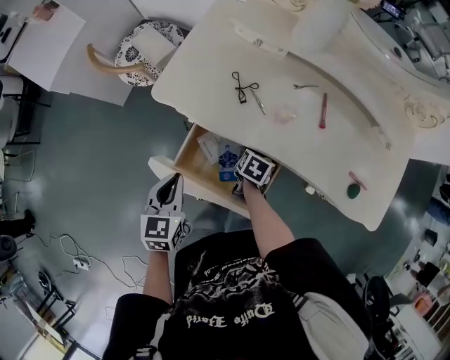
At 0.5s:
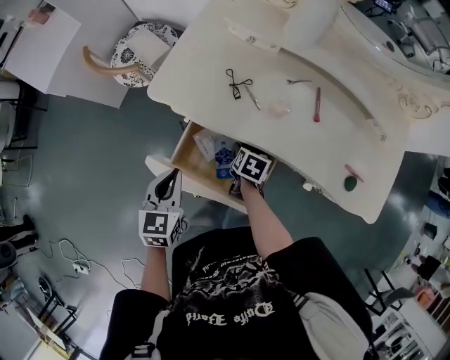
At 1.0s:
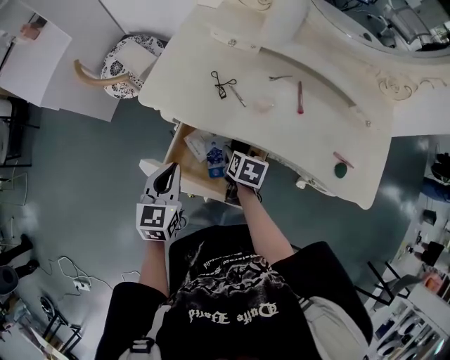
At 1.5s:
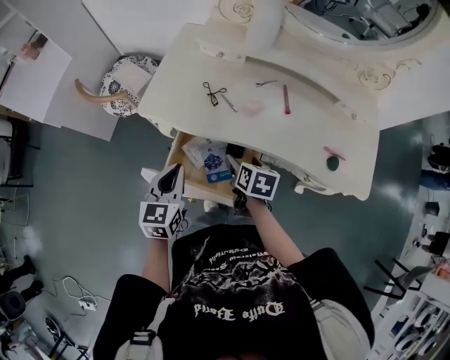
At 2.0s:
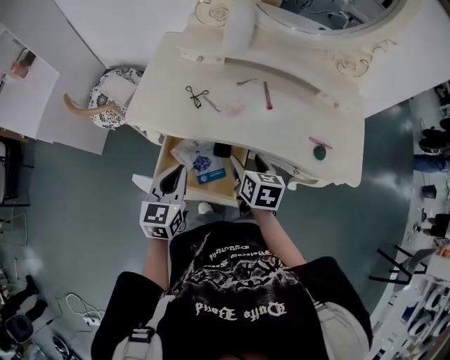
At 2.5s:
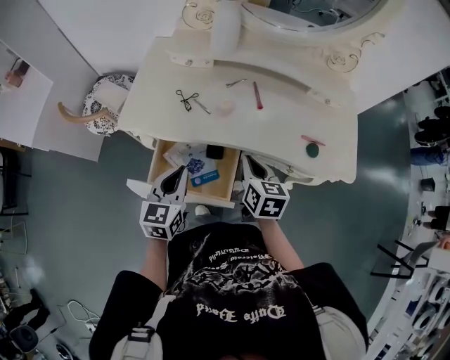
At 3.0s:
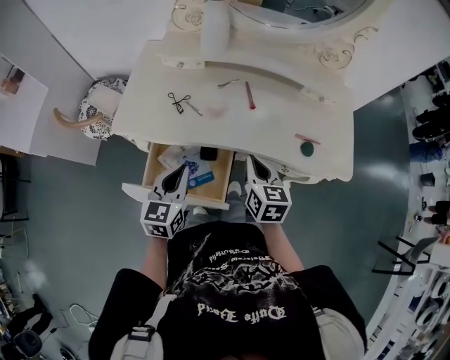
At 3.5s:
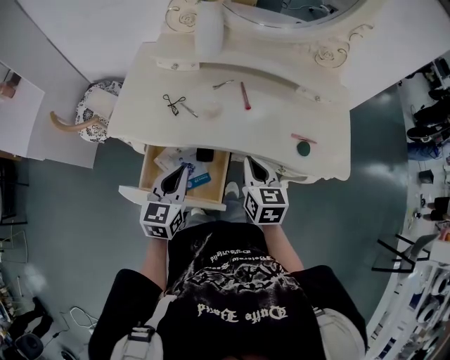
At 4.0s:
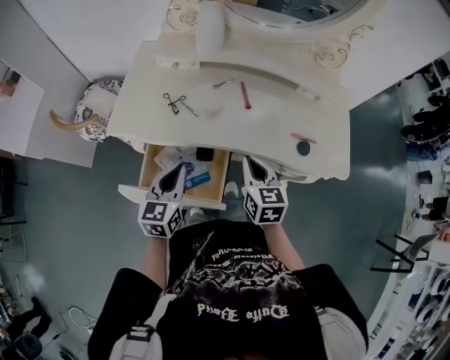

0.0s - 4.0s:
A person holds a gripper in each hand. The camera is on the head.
0.0s - 2.0s: The right gripper goes roughly 20 cm upward, and changes its angle by roughly 30 degrees, while the left gripper goes about 10 cm to the right, and turns by roughly 20 degrees.
2.0s - 4.0s: Both grippers move to the right, some 5 cm. The right gripper closes.

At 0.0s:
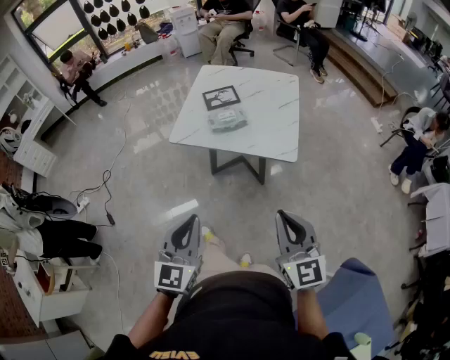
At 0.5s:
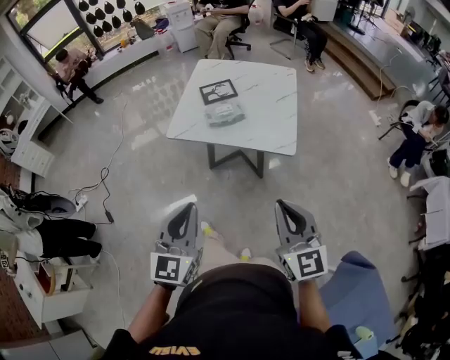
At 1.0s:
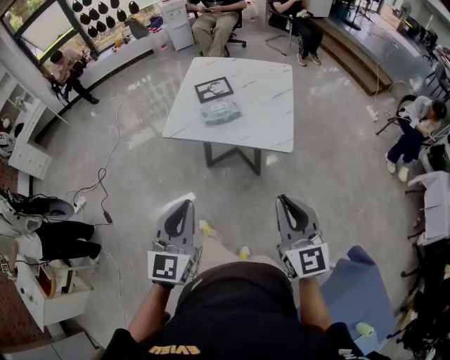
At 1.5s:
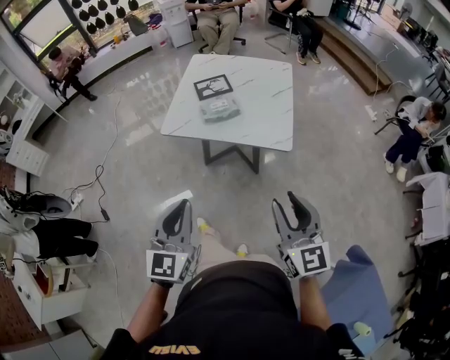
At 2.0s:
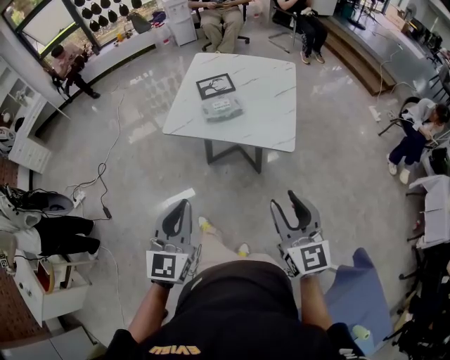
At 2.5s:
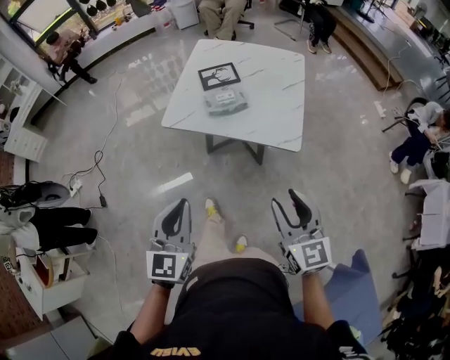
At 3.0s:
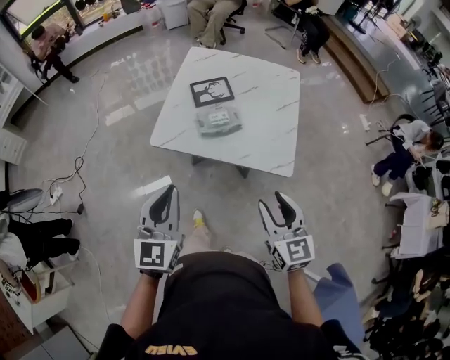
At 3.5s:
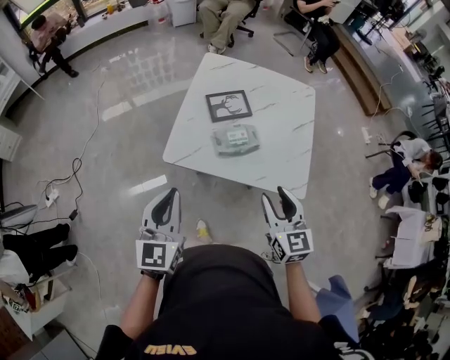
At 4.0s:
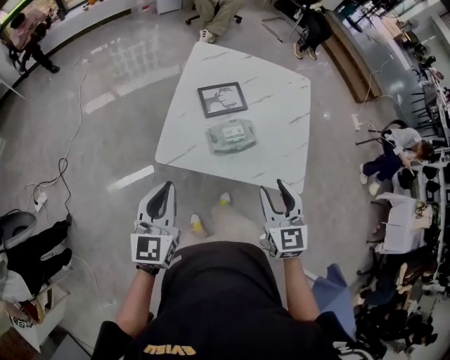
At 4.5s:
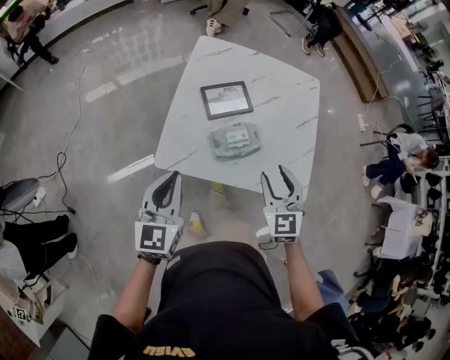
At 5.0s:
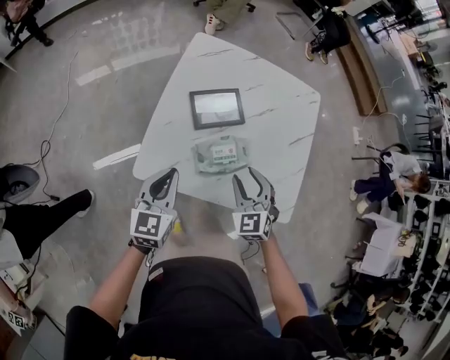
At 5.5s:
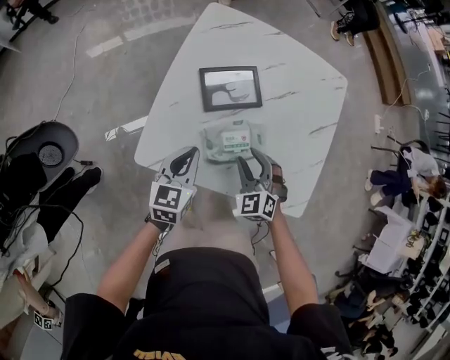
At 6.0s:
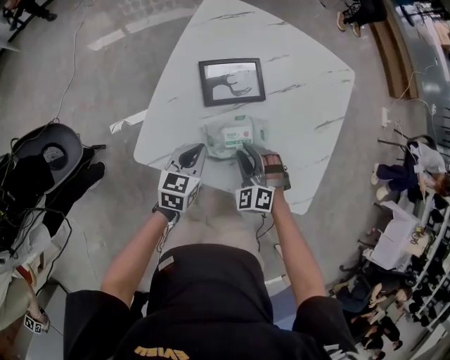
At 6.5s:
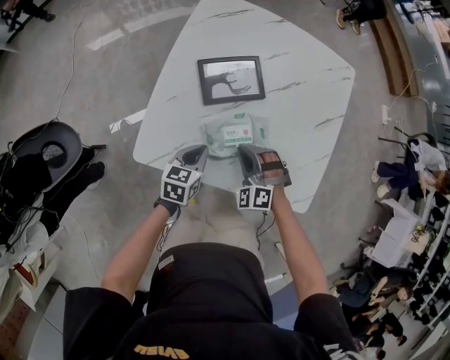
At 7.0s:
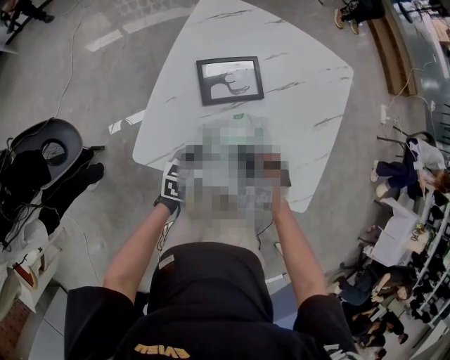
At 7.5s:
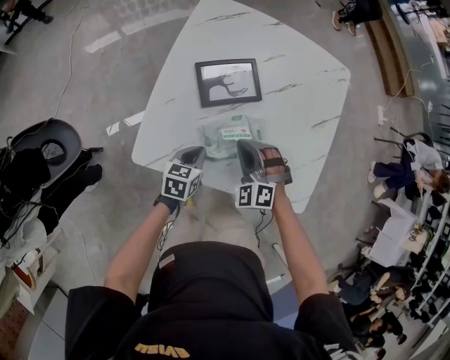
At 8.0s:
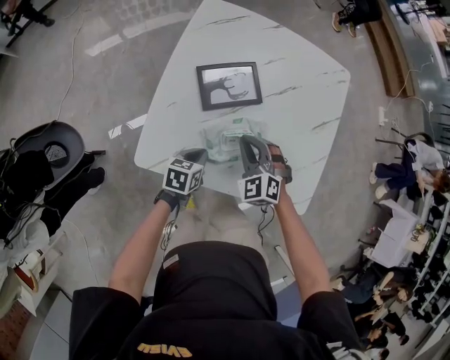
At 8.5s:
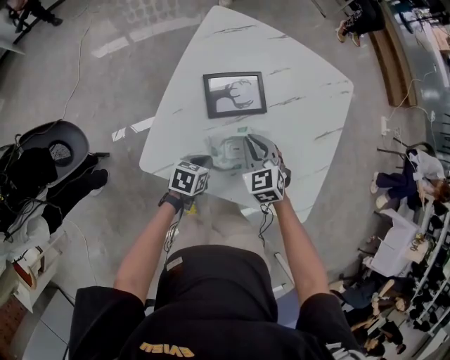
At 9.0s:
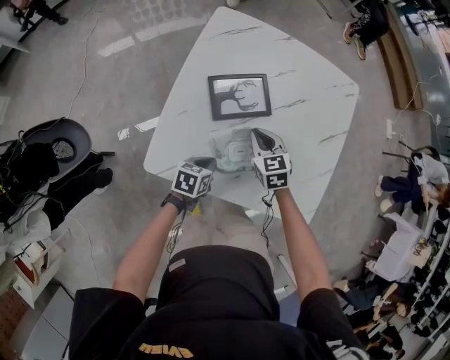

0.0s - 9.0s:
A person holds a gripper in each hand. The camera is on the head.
0.0s - 2.0s: The right gripper opens.
2.0s - 4.5s: The two grippers travel together, forward, some 40 cm. The right gripper turns by roughly 30 degrees.
4.5s - 7.0s: The grippers both shift downward and forward by approximately 25 cm. The left gripper changes its angle by about 40 degrees; the right gripper rotates around the line of its fingers by approximately 40 degrees, counterclockwise from behind, and closes.
7.0s - 9.0s: The right gripper shifts some 10 cm forward, and twists roughly 50 degrees clockwise, seen from behind.

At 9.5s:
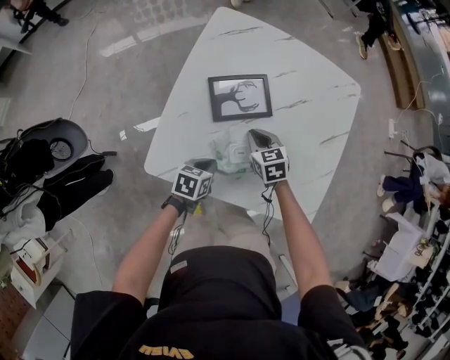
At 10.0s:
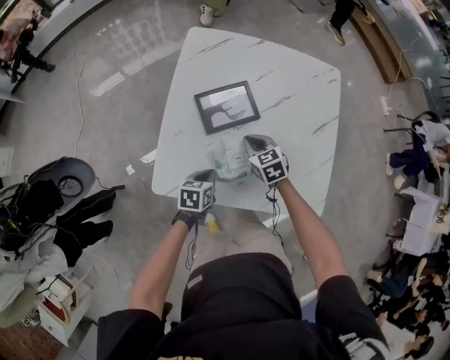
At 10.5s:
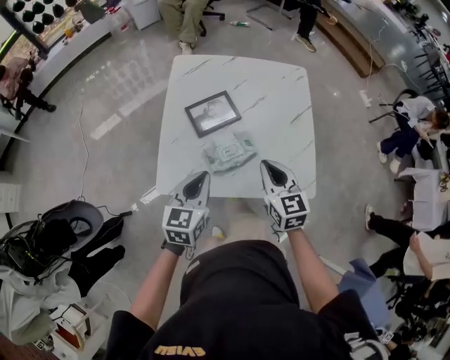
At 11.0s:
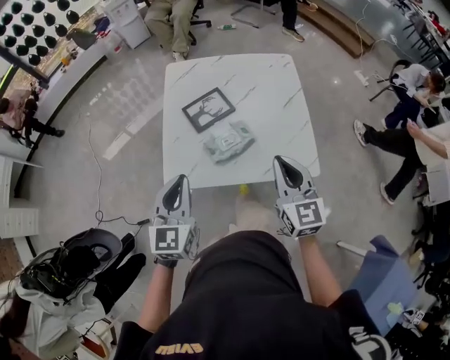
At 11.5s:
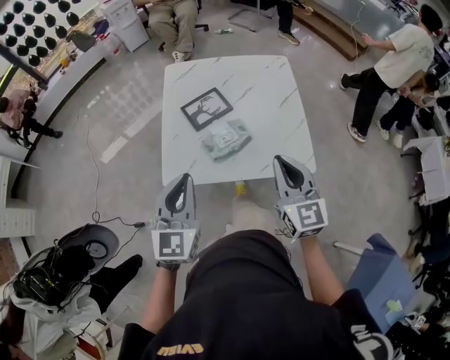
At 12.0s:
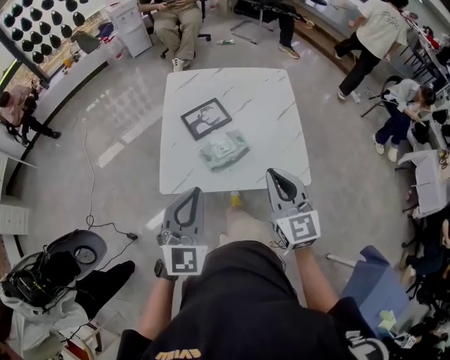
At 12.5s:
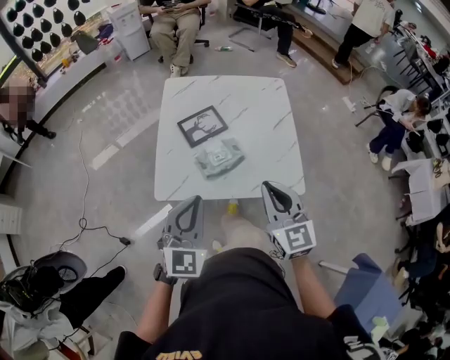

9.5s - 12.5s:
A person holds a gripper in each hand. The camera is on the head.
9.5s - 11.0s: The left gripper goes some 30 cm upward, and angles its fingers upward, by about 40 degrees. The right gripper is displaced upward, backward and to the right by about 40 cm, and points its fingers about 40 degrees further upward.
11.0s - 12.5s: The right gripper changes place by some 5 cm. Meanwhile the left gripper moves to the right, approximately 5 cm.

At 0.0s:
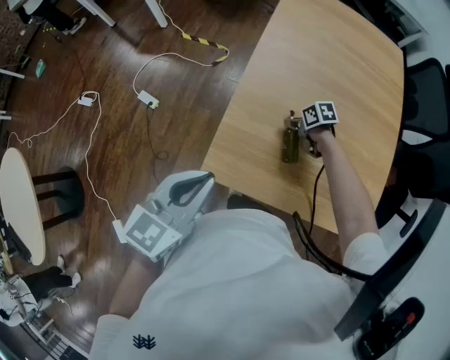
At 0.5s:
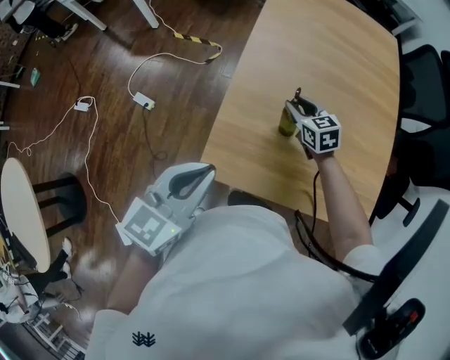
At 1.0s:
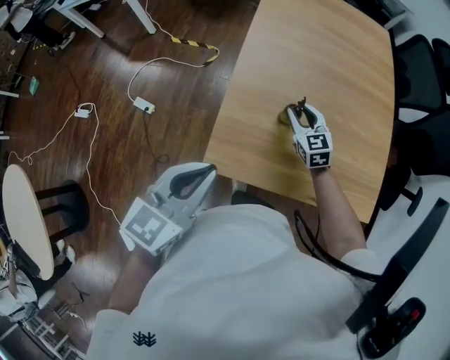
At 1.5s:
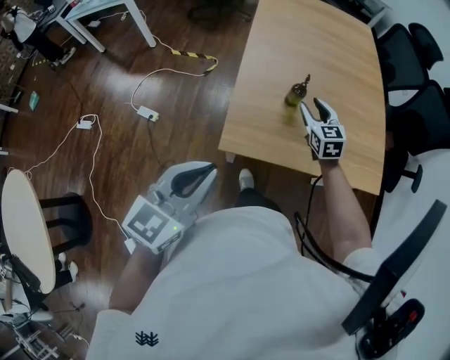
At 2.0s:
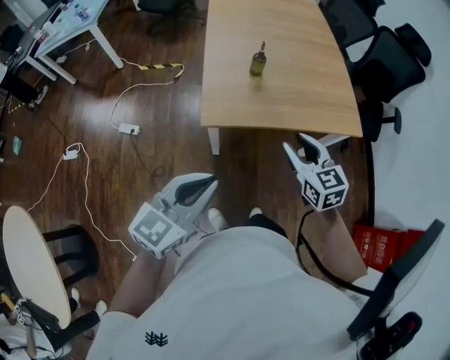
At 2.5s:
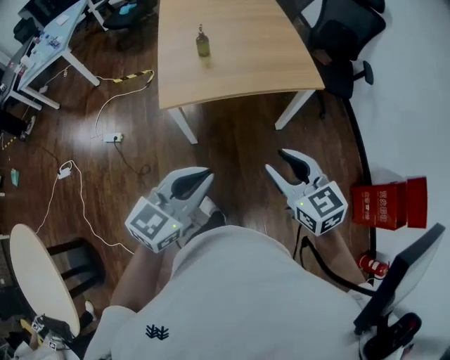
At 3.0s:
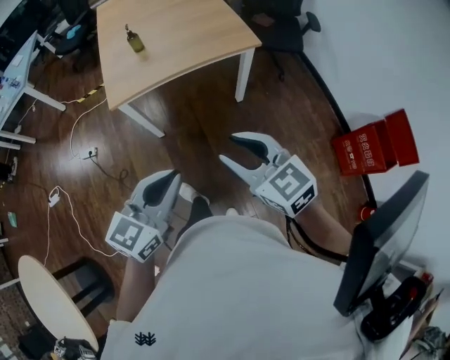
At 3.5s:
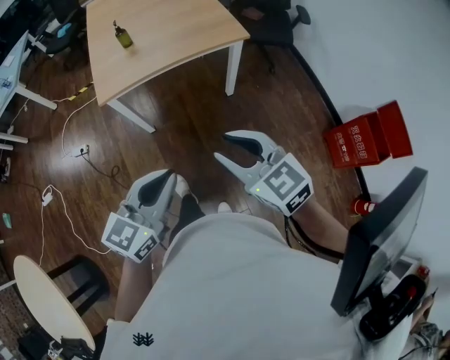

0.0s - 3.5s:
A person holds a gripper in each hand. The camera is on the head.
0.0s - 2.0s: The right gripper shifts by some 40 cm, and tips its fingers upward by roughly 30 degrees; the left gripper shifts by about 20 cm, and rotates about 30 degrees.
2.0s - 3.5s: The left gripper is displaced to the right and backward by approximately 25 cm, while the right gripper is displaced backward and to the right by roughly 30 cm.

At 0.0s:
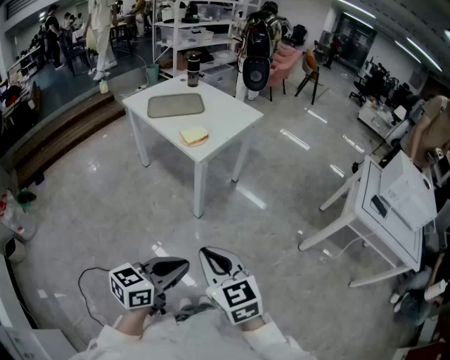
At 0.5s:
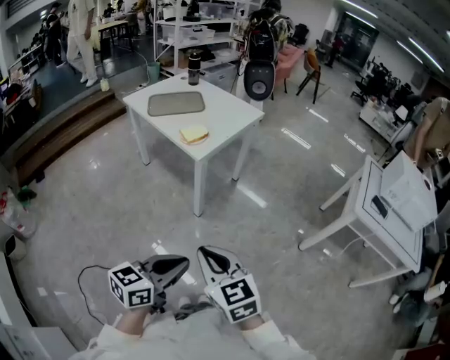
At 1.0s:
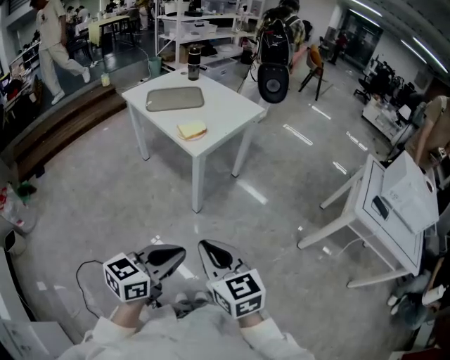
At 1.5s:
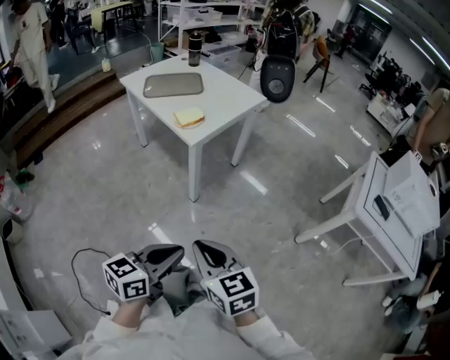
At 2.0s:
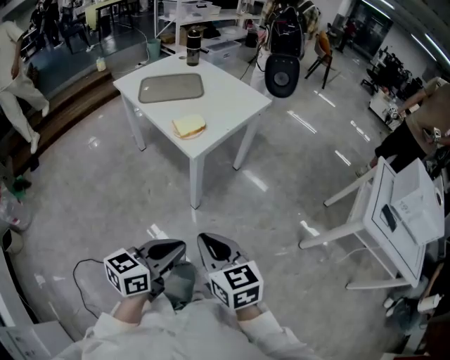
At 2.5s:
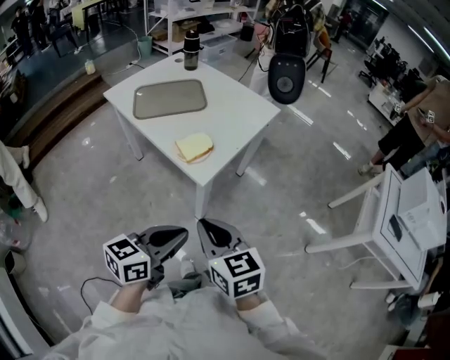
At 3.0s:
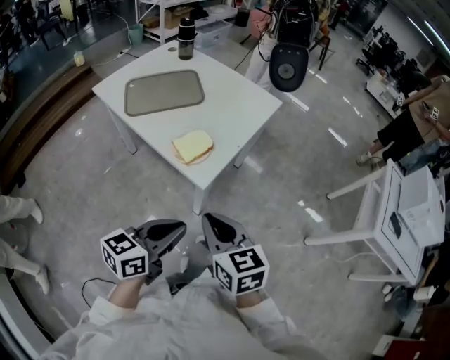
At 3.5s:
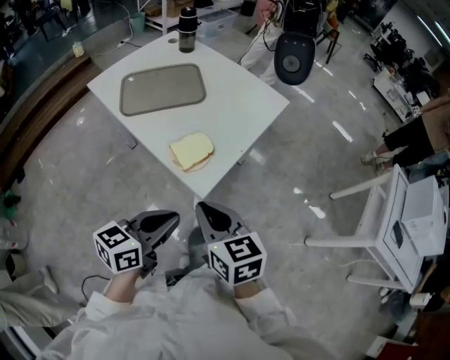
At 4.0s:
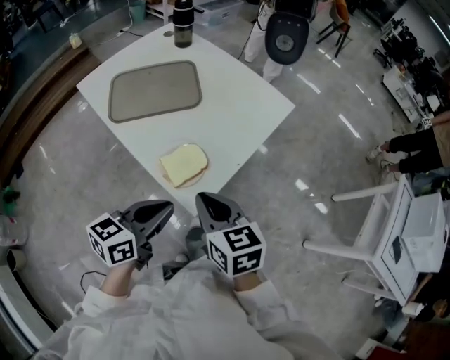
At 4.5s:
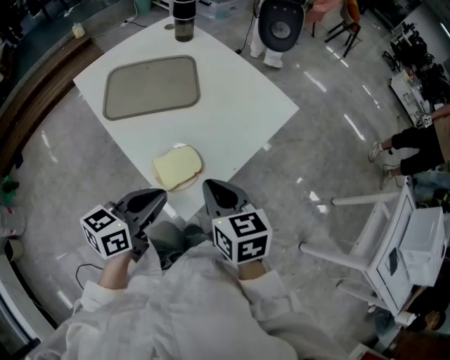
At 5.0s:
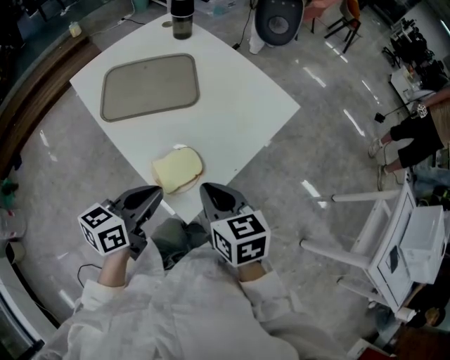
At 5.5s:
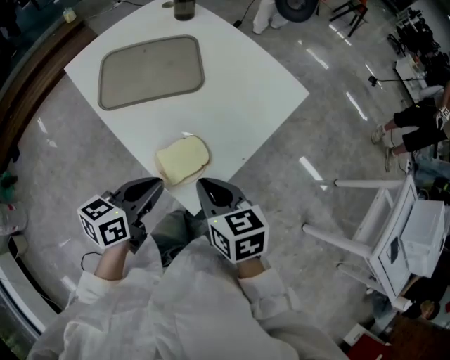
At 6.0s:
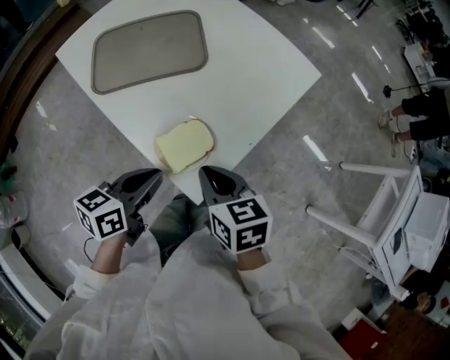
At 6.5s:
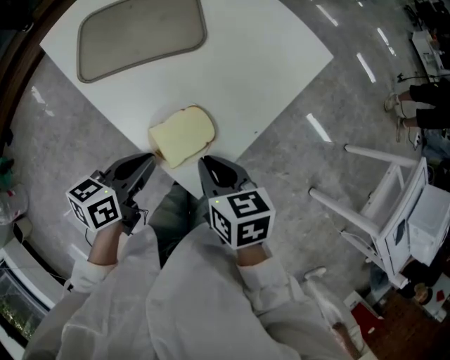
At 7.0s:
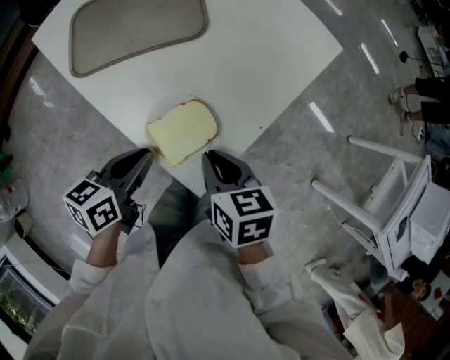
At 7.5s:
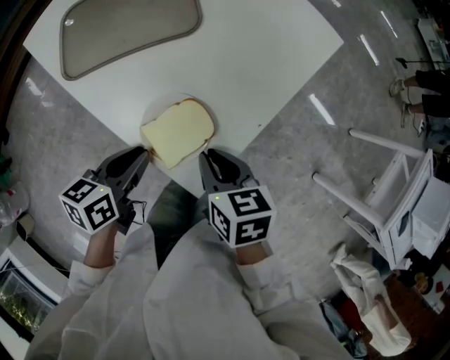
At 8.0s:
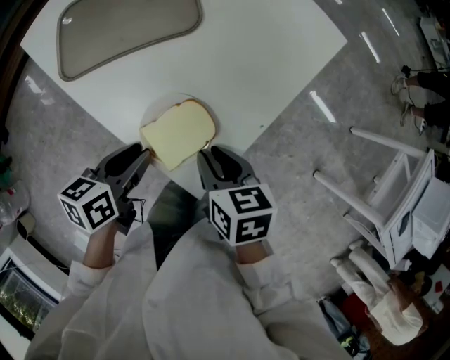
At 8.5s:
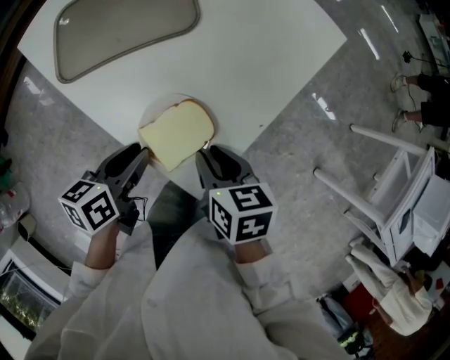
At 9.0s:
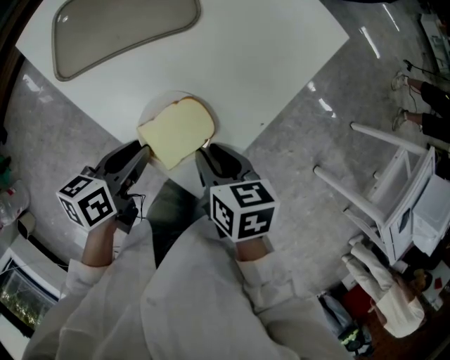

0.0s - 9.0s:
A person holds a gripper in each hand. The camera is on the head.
0.0s - 2.0s: The grippers both shift forward by some 15 cm.
2.0s - 4.5s: Both grippers are carried forward, roughly 40 cm.
4.5s - 7.0s: The left gripper travels downward and to the left by approximately 10 cm. Meanwhile the right gripper is displaced downward by about 10 cm, and rotates roughly 20 degrees.
7.0s - 9.0s: The left gripper opens.
